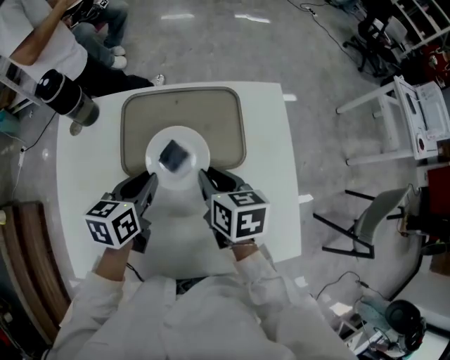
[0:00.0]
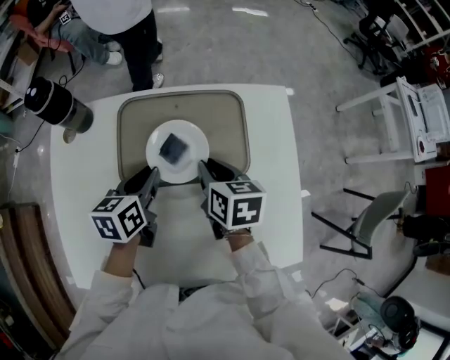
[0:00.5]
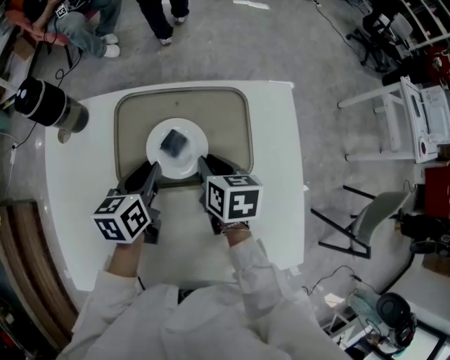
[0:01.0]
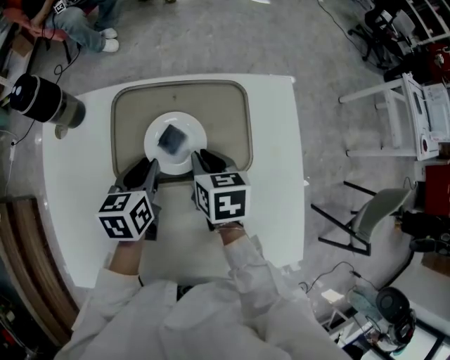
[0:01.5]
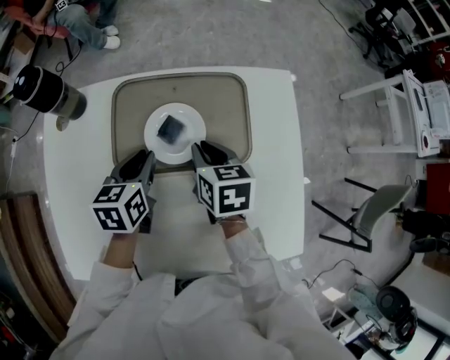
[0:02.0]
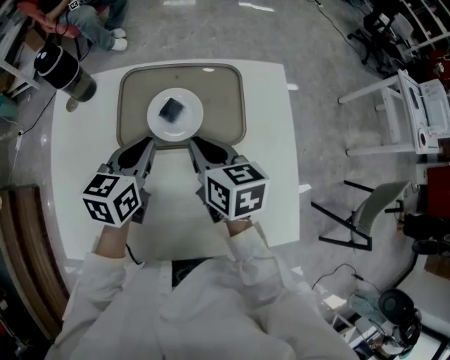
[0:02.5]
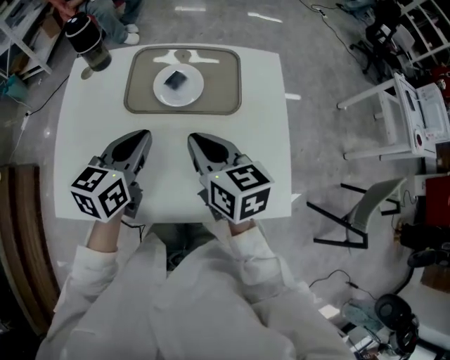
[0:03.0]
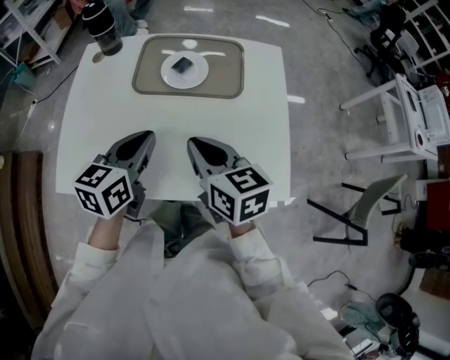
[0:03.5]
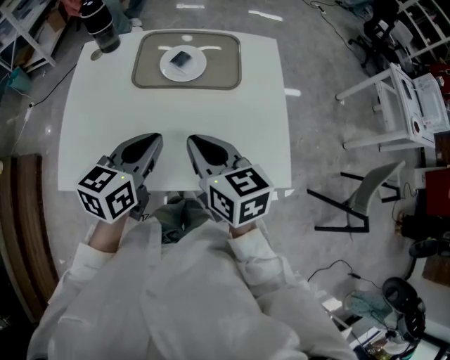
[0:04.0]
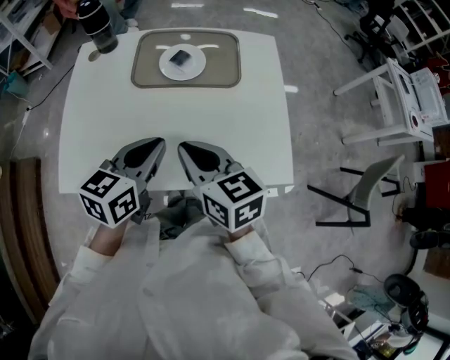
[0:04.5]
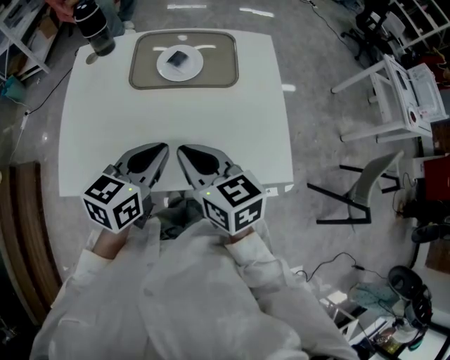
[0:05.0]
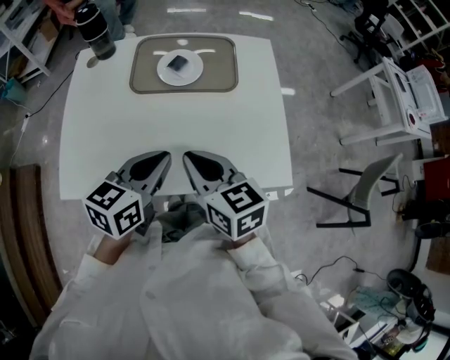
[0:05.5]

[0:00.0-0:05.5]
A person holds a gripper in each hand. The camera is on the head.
0:00.0 to 0:02.0: The left gripper shifts about 10 cm forward and downward. The right gripper moves forward, roughly 5 cm.
0:02.0 to 0:03.5: The grippers both shift backward and upward by approximately 30 cm. The right gripper rotates some 30 degrees.
0:03.5 to 0:05.5: Both grippers travel together backward, about 5 cm.

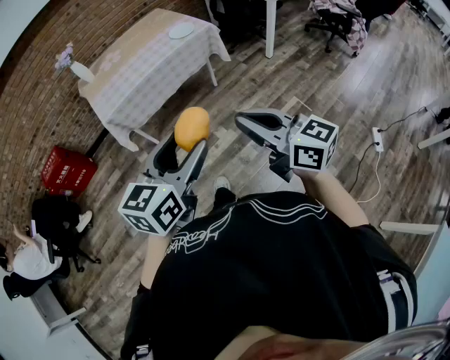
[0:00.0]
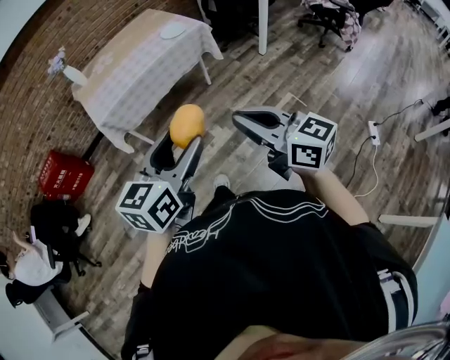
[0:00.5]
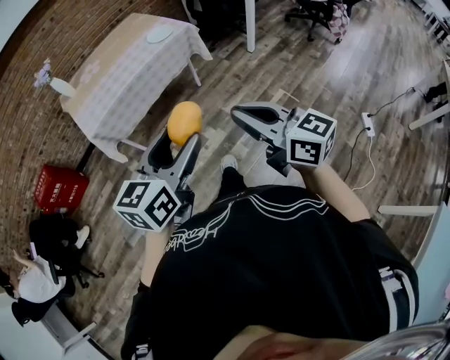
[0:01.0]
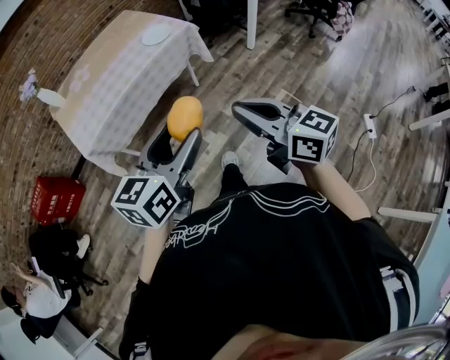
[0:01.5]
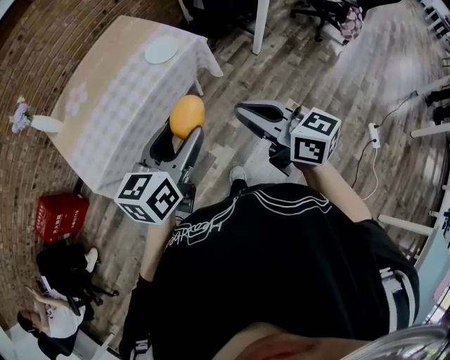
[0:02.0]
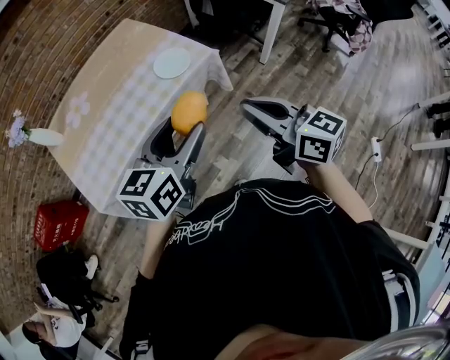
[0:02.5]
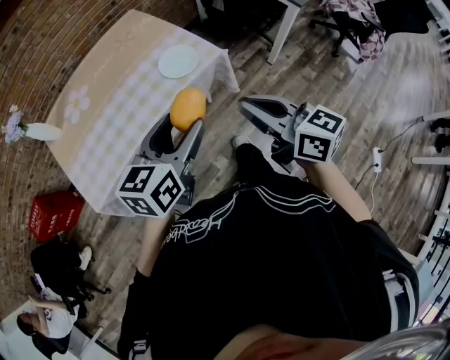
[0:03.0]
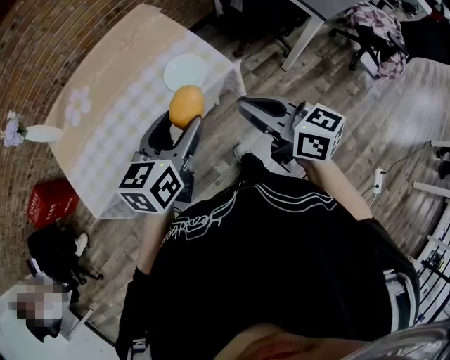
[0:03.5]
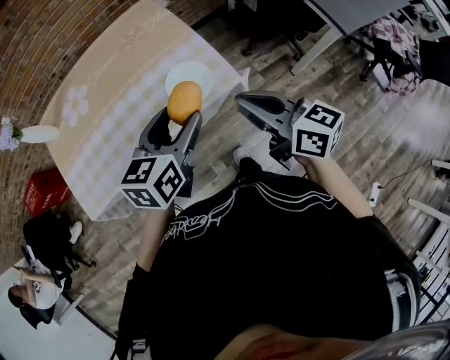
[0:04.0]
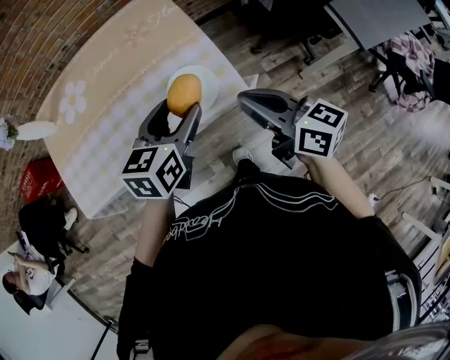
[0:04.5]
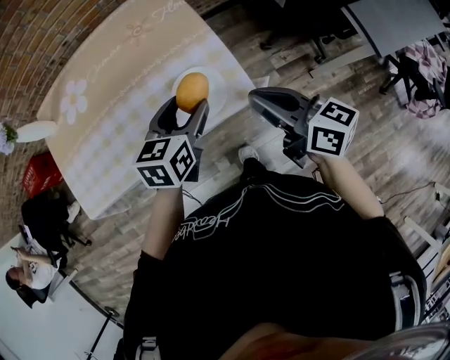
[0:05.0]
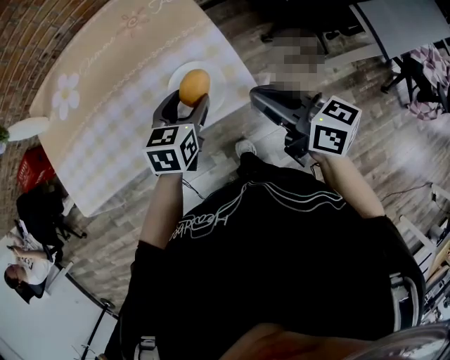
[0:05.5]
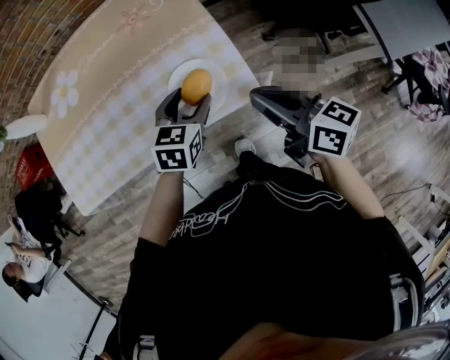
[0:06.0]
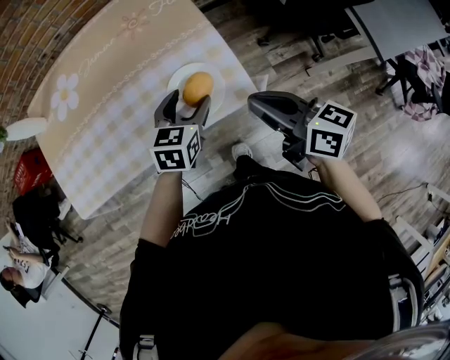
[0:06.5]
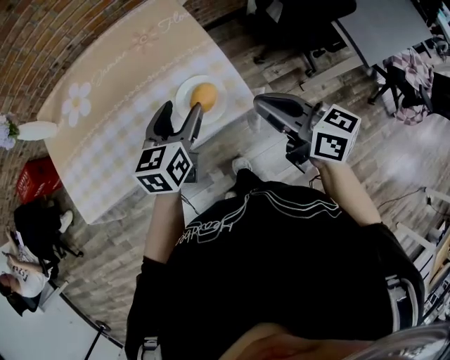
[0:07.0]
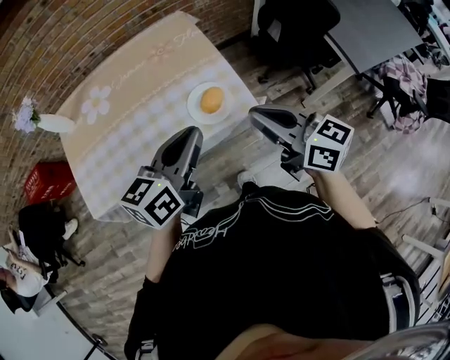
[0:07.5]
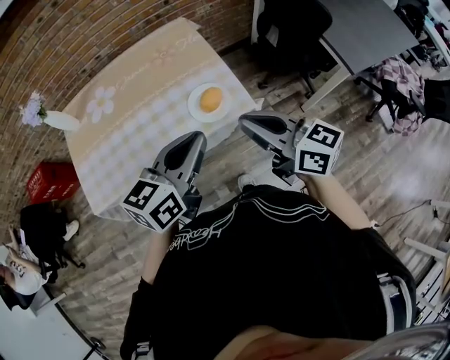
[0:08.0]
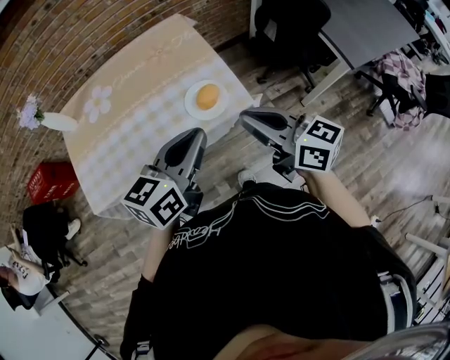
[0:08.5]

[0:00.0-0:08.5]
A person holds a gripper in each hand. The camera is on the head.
0:00.0 to 0:02.0: The two grippers go some 35 cm forward.
0:02.0 to 0:04.0: Both grippers move forward, approximately 40 cm.
0:04.0 to 0:06.5: The right gripper moves forward and downward, about 15 cm. Meanwhile the left gripper heads downward and forward, covering some 20 cm.
0:06.5 to 0:08.5: The right gripper shifts roughly 15 cm upward and backward; the left gripper shifts some 30 cm upward and backward, changes its angle by approximately 30 degrees, and closes.

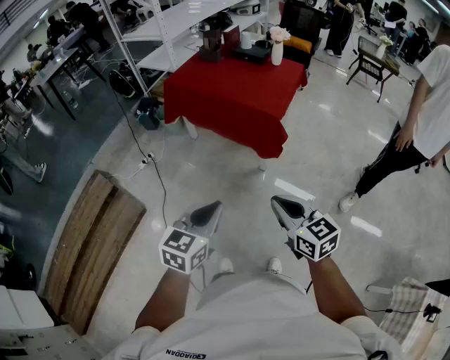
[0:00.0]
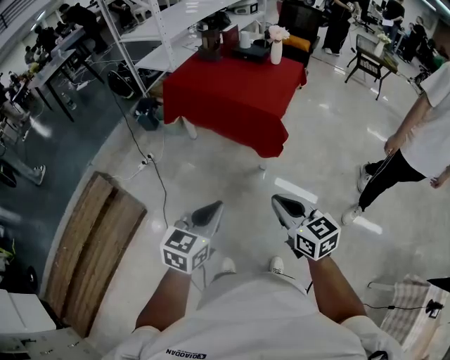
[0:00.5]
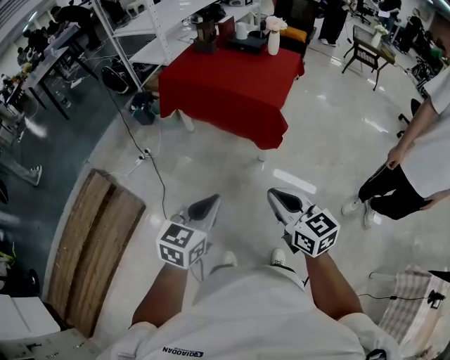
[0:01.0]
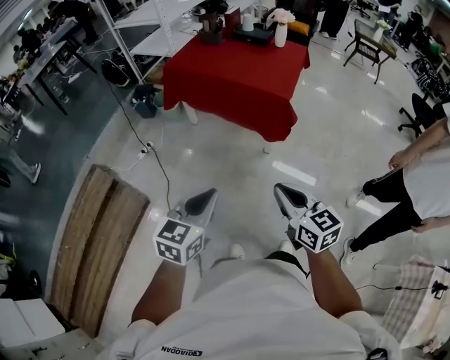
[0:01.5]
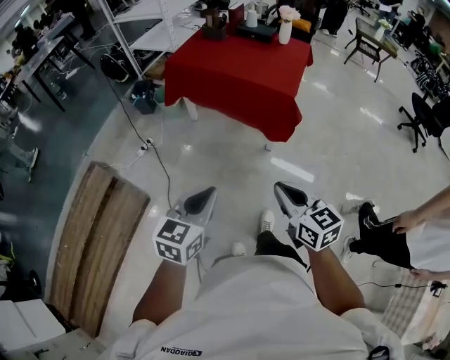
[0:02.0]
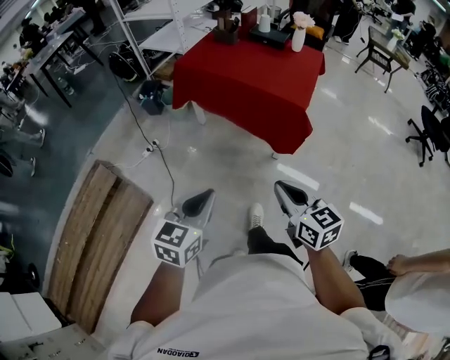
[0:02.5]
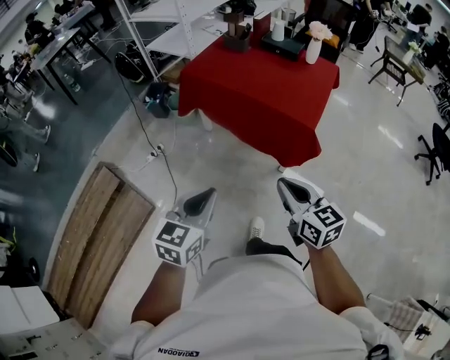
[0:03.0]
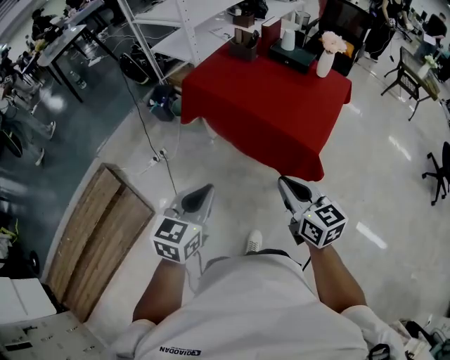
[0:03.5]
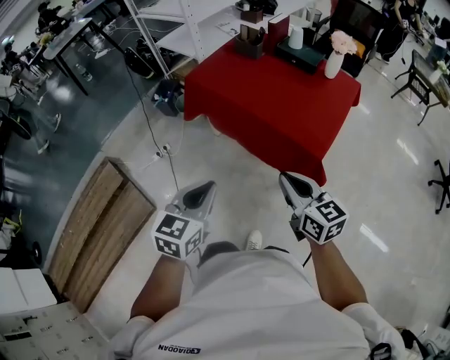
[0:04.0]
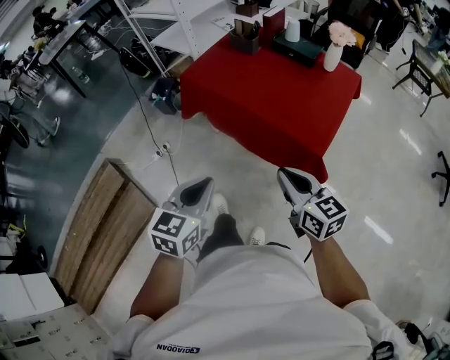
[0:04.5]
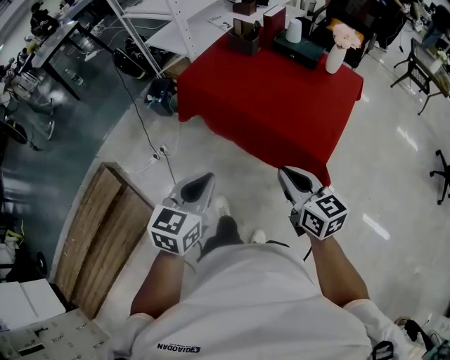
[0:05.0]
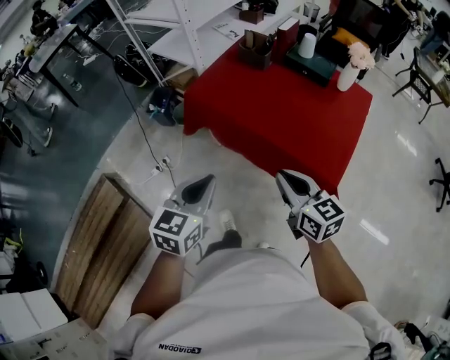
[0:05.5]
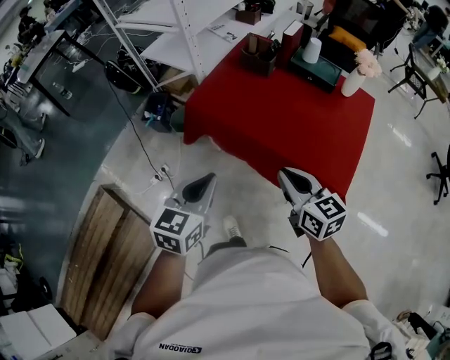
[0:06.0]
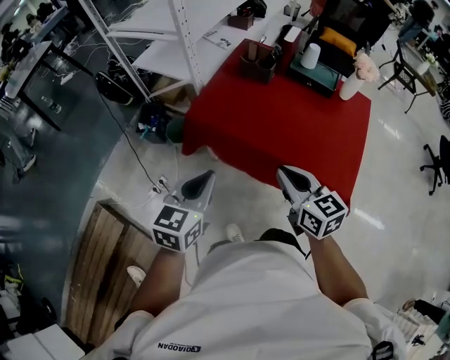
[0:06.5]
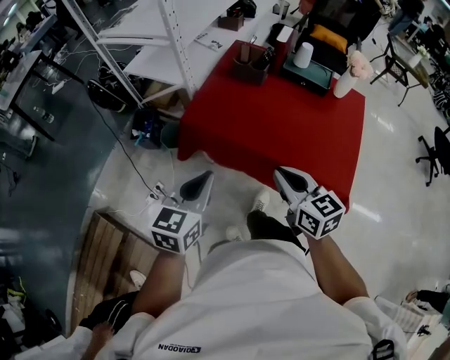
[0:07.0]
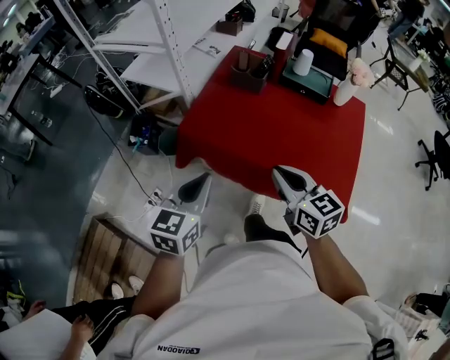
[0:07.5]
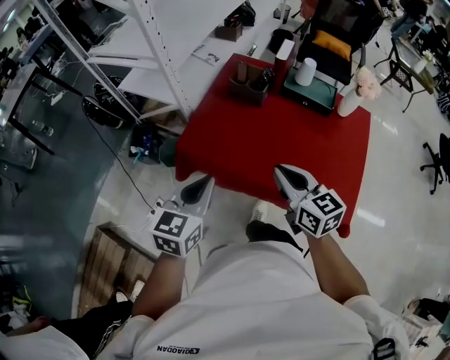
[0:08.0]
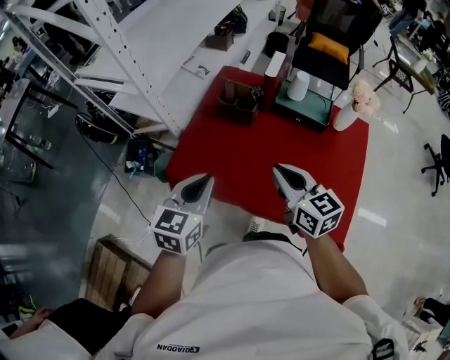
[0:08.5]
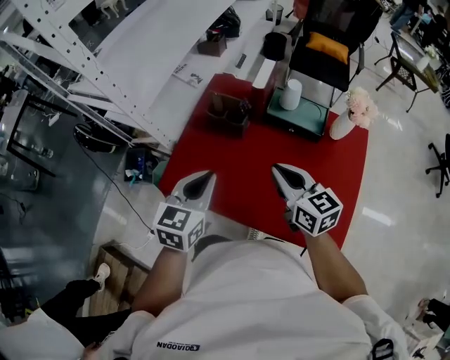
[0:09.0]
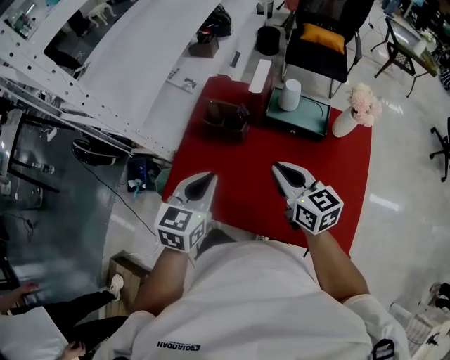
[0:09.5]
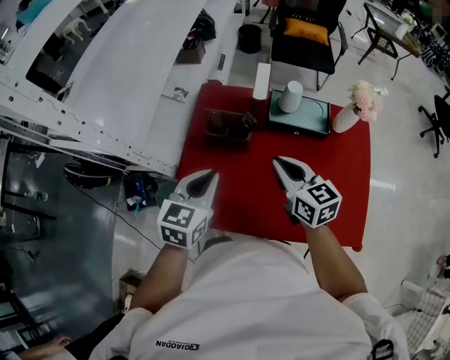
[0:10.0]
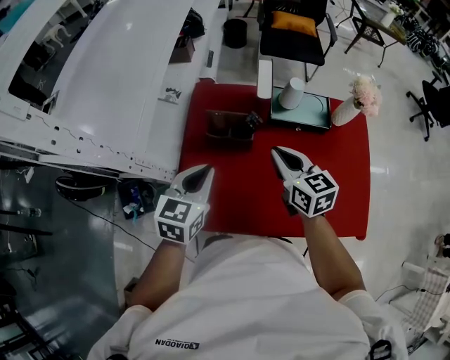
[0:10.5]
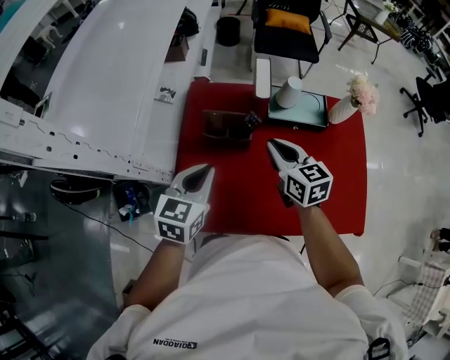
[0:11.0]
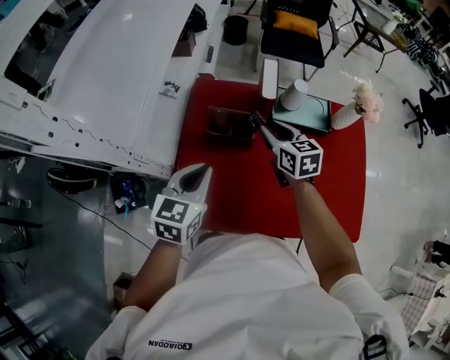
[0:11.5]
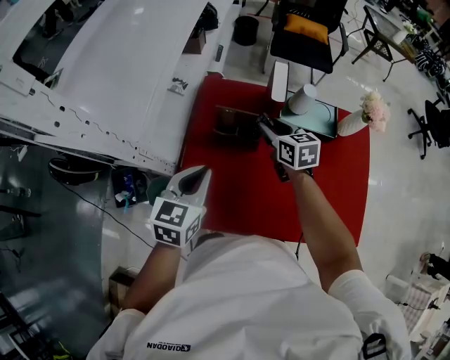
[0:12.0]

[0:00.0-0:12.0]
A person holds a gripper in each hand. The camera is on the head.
0:00.0 to 0:02.0: The two grippers go some 10 cm to the left.
0:02.0 to 0:04.0: The grippers both shift forward by roughly 35 cm.
0:04.0 to 0:06.0: The left gripper is displaced forward by some 25 cm. The right gripper goes approximately 25 cm forward and to the left.
0:06.0 to 0:08.0: Both grippers travel together forward, some 20 cm.
0:08.0 to 0:10.0: The grippers both shift forward by roughly 25 cm.
0:10.0 to 0:12.0: The left gripper moves to the left, roughly 5 cm, while the right gripper shifts approximately 15 cm forward, downward and to the left, and opens.

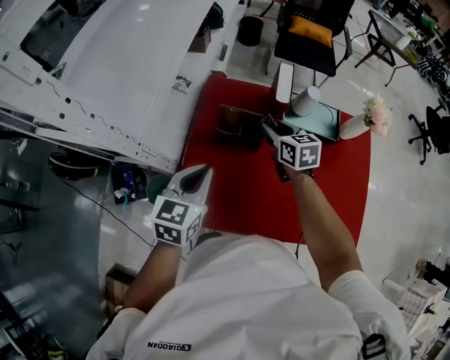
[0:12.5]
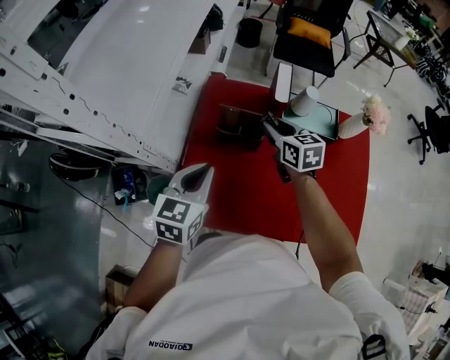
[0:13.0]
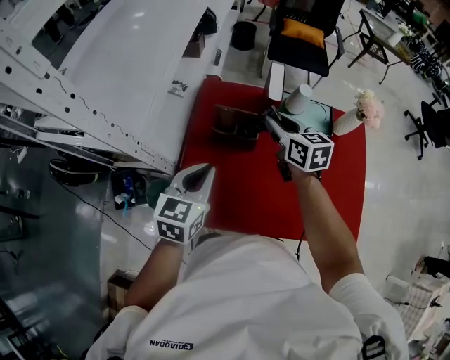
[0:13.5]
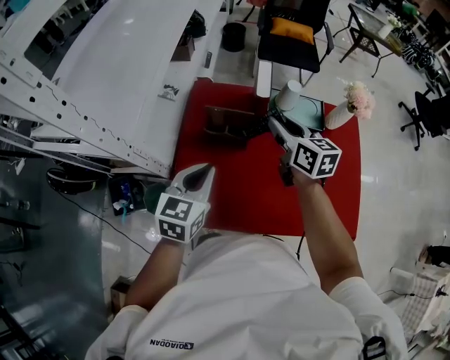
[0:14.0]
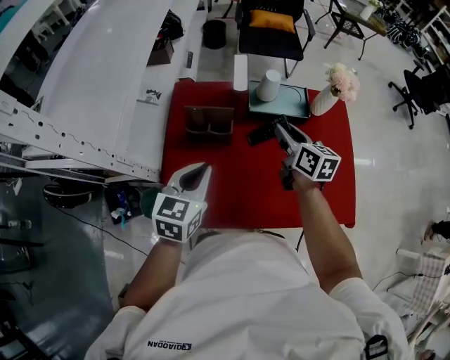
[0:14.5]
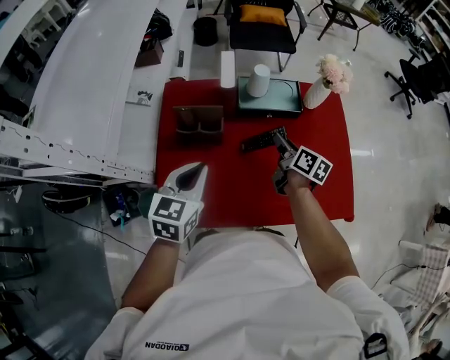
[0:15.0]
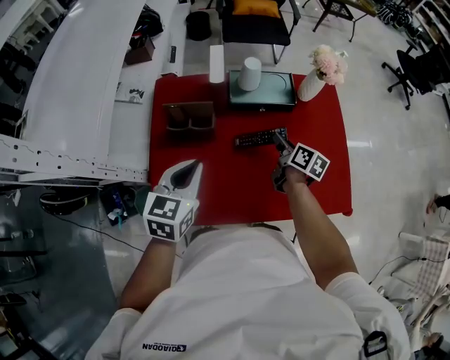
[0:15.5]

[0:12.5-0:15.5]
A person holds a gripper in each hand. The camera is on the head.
0:12.5 to 0:14.0: The right gripper shifts roughly 10 cm upward and to the right.
0:14.0 to 0:15.5: The left gripper goes roughly 5 cm to the right. The right gripper moves downward and to the right, roughly 25 cm, and swivels about 40 degrees.
